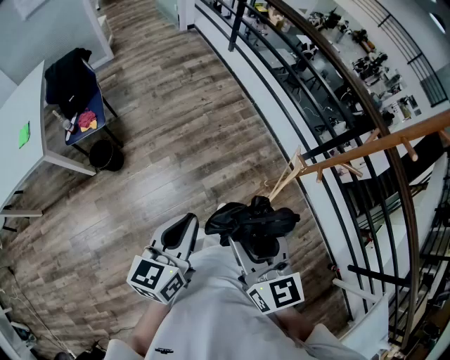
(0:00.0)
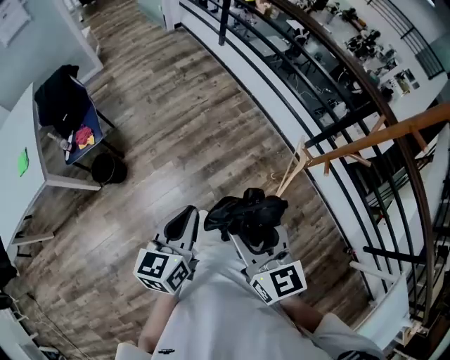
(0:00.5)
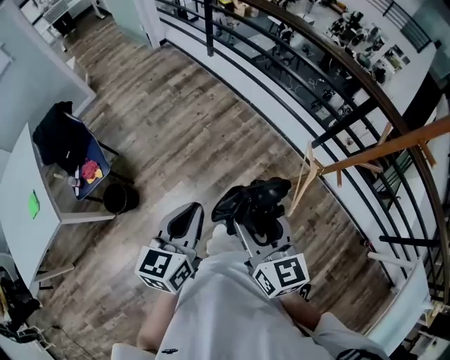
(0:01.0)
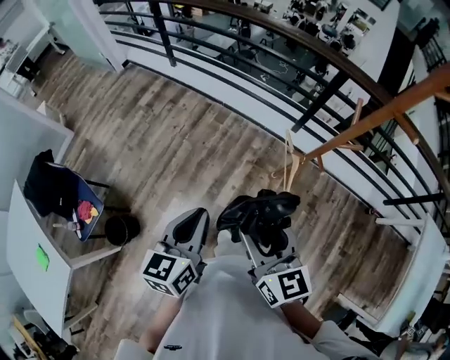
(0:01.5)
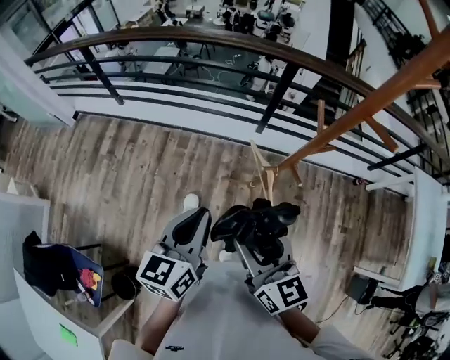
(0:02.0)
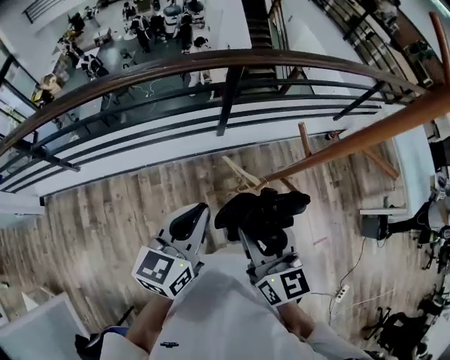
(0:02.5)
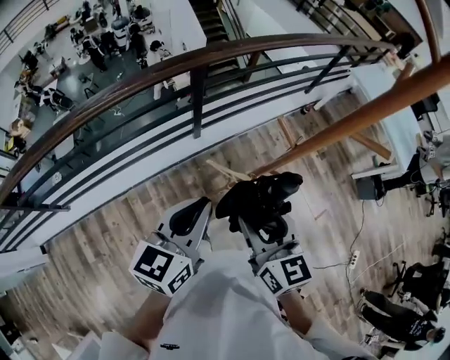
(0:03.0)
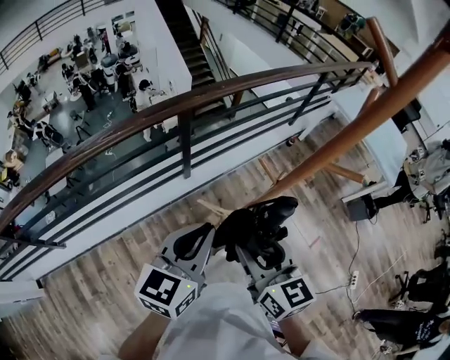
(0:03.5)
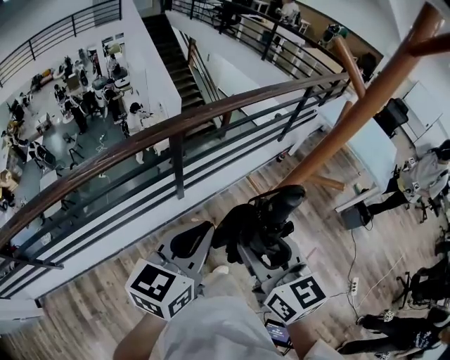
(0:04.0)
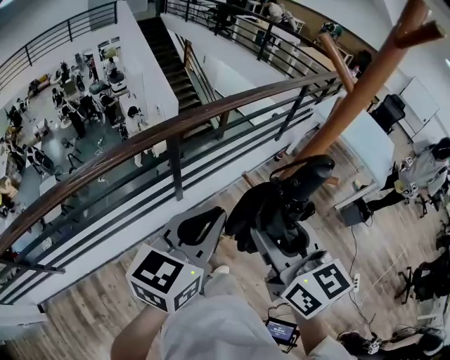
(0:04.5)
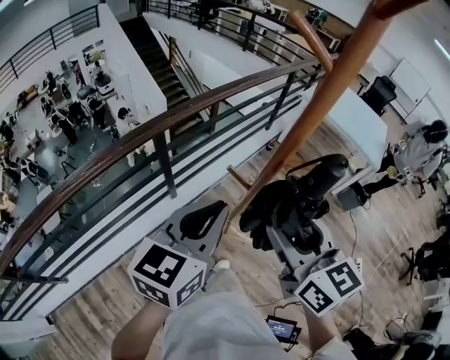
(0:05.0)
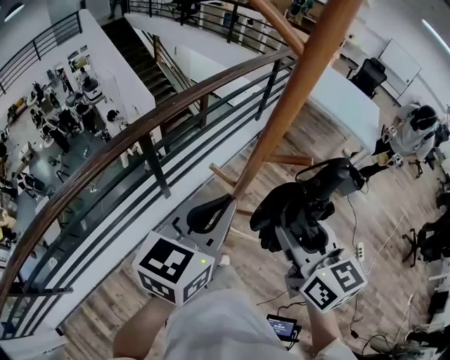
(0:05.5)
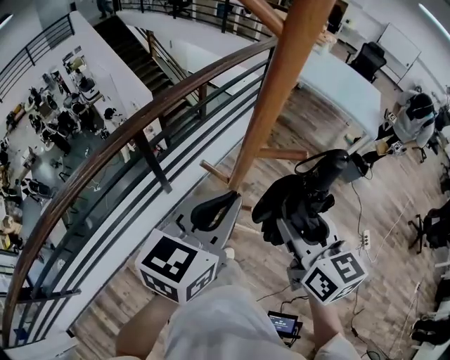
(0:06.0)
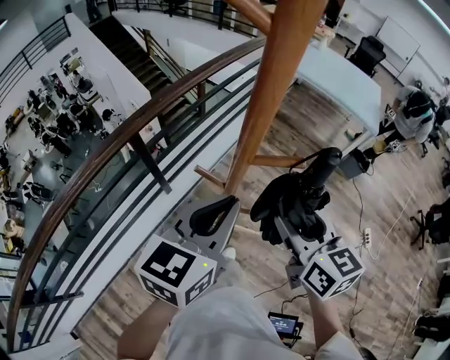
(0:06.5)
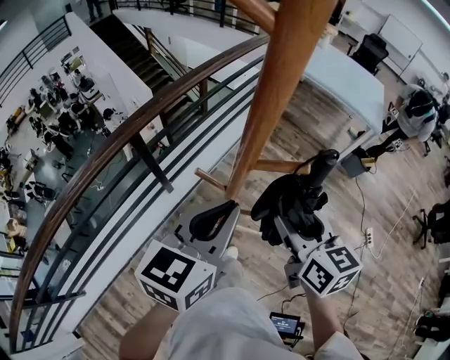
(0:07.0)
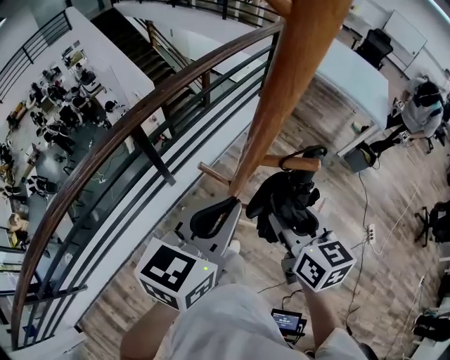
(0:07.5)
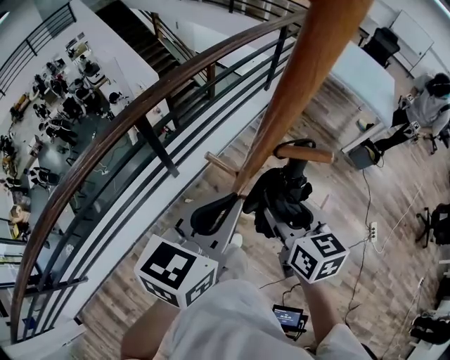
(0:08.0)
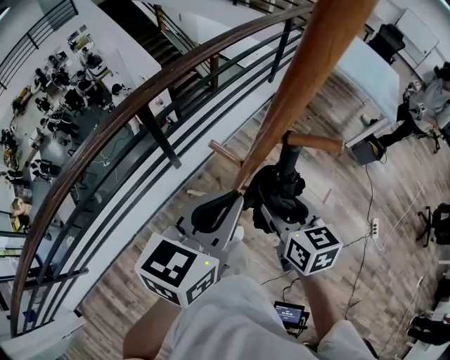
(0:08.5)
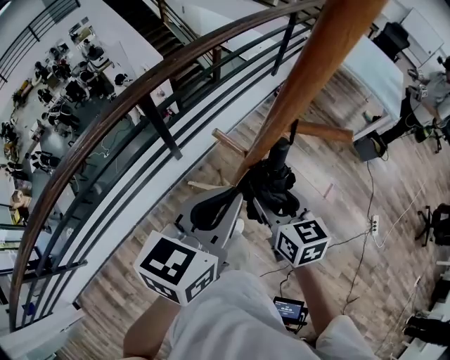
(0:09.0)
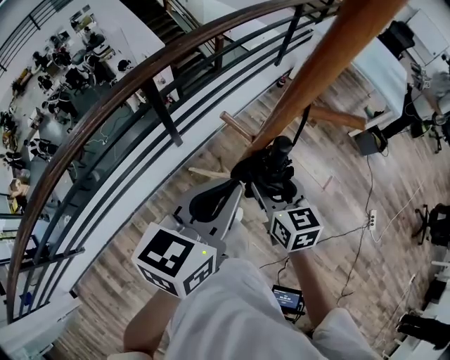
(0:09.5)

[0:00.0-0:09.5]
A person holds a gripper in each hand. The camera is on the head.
0:00.0 to 0:02.0: The left gripper changes place by roughly 35 cm, and turns by some 50 degrees. The right gripper moves about 25 cm, and turns by roughly 50 degrees.
0:02.0 to 0:04.0: The right gripper shifts by roughly 30 cm, and swivels approximately 50 degrees. Meanwhile the left gripper shifts by roughly 35 cm, and rotates some 60 degrees.
0:04.0 to 0:05.5: The left gripper goes approximately 15 cm to the right and forward, while the right gripper travels to the right by approximately 15 cm.
0:05.5 to 0:07.5: The right gripper is displaced downward and forward by about 15 cm. Meanwhile the left gripper travels downward by about 5 cm.
0:07.5 to 0:09.5: The left gripper ends up about 5 cm from where it was. The right gripper goes about 10 cm downward.

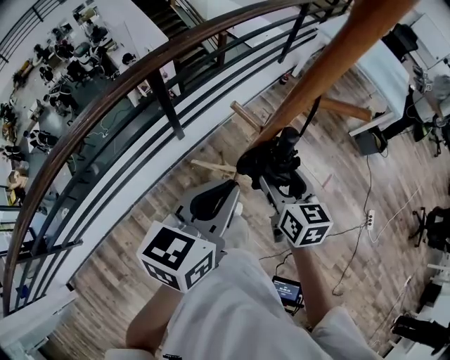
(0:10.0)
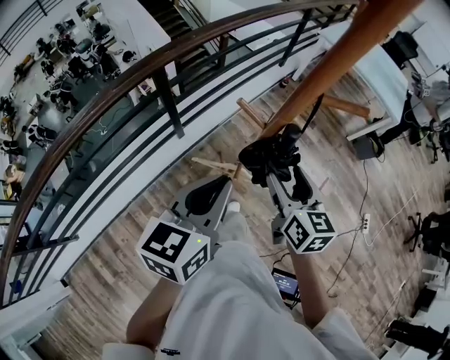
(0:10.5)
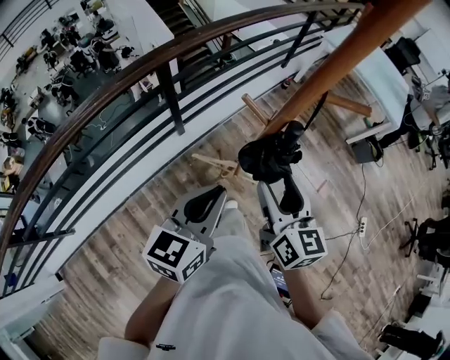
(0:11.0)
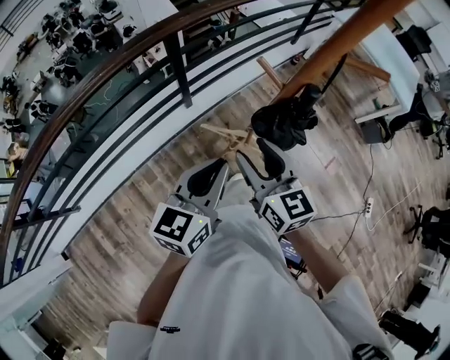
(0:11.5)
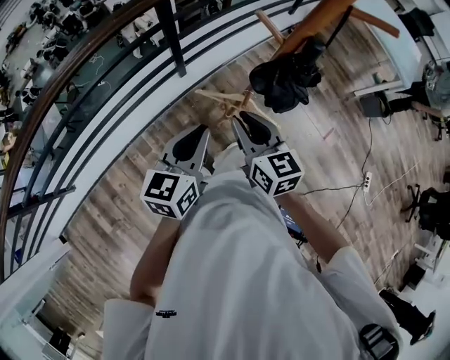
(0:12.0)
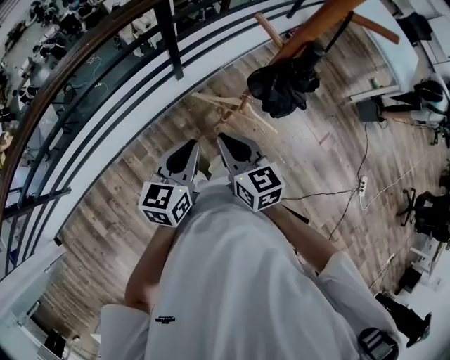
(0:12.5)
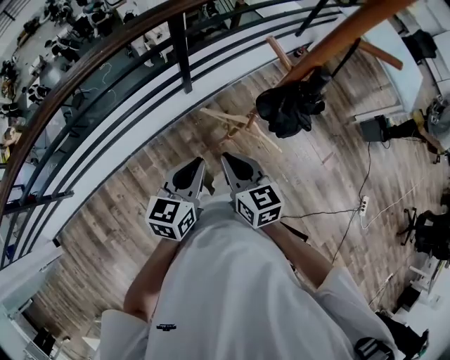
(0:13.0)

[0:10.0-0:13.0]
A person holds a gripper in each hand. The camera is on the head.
0:10.0 to 0:11.5: The left gripper goes approximately 10 cm backward, downward and to the left, while the right gripper is displaced to the left and backward by roughly 15 cm, and rotates roughly 20 degrees.
0:11.5 to 0:13.0: The right gripper shifts some 15 cm downward, backward and to the left, and closes. Meanwhile the left gripper travels downward and to the left by about 15 cm.

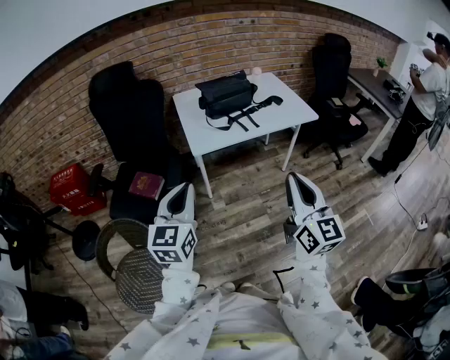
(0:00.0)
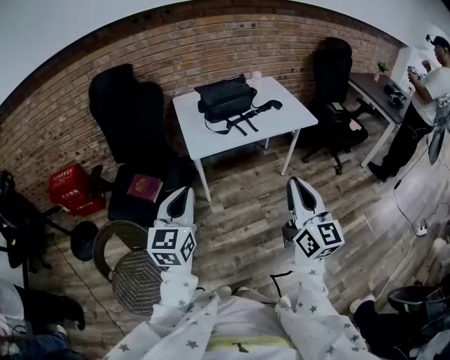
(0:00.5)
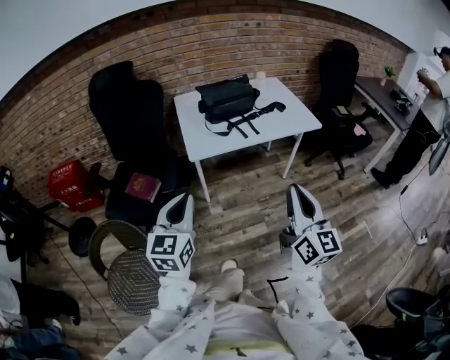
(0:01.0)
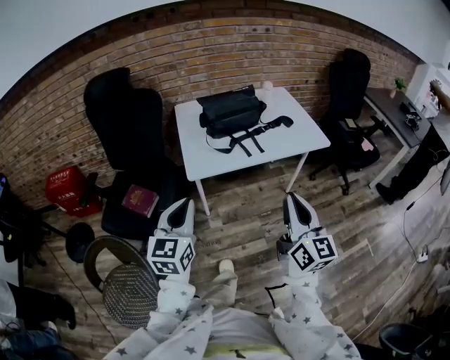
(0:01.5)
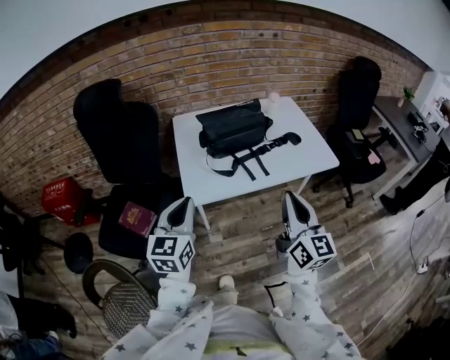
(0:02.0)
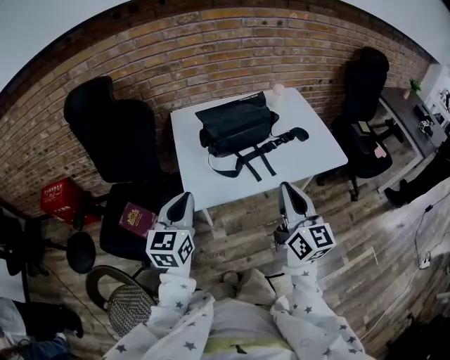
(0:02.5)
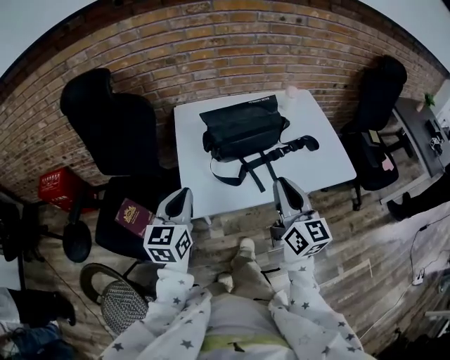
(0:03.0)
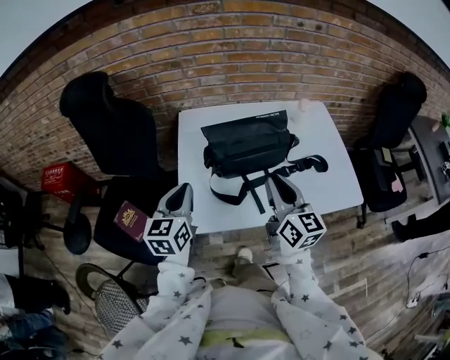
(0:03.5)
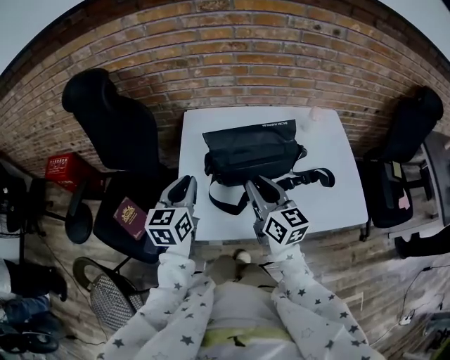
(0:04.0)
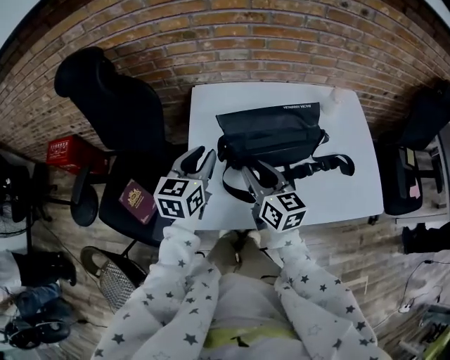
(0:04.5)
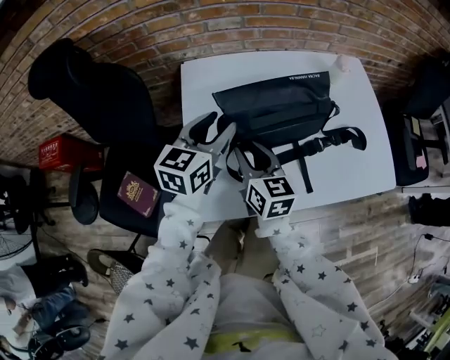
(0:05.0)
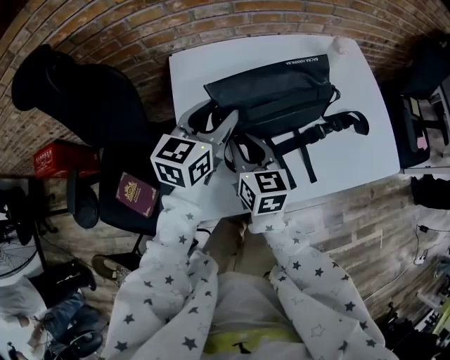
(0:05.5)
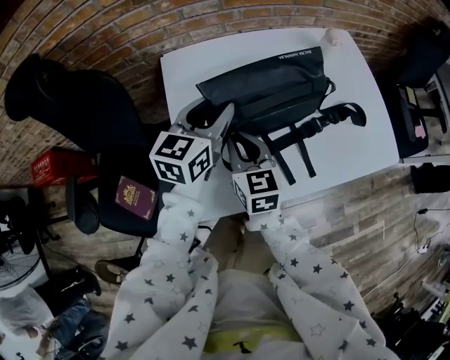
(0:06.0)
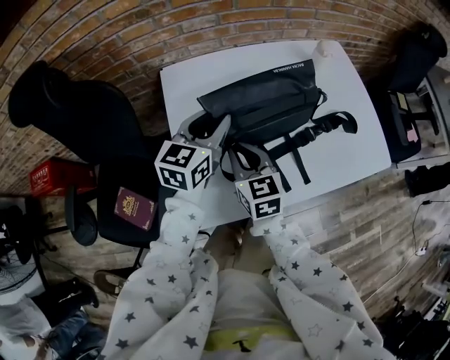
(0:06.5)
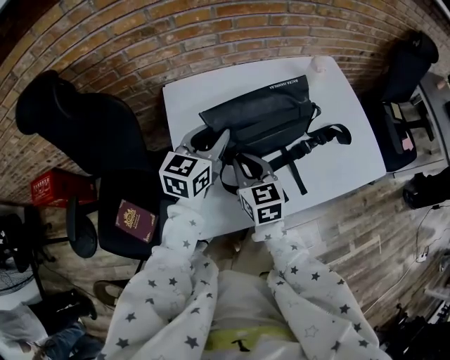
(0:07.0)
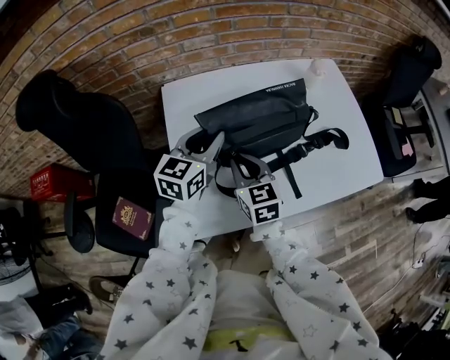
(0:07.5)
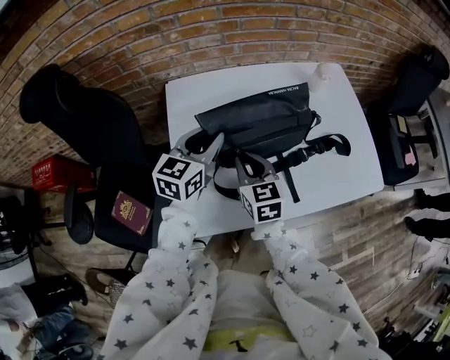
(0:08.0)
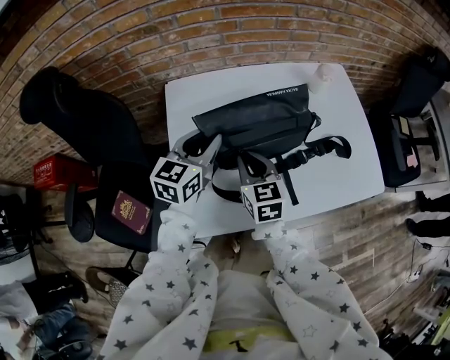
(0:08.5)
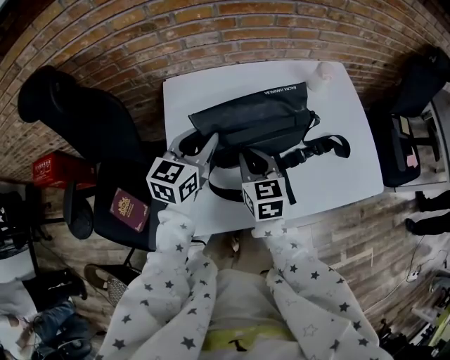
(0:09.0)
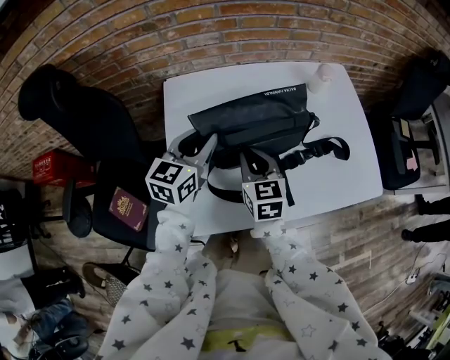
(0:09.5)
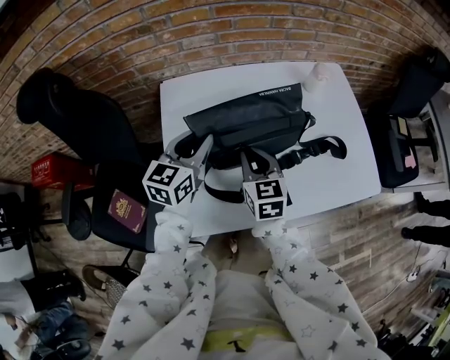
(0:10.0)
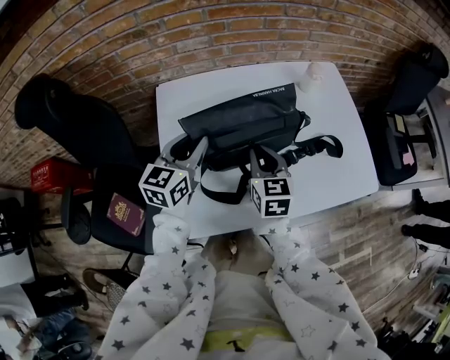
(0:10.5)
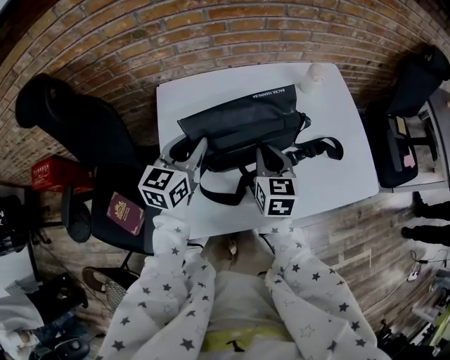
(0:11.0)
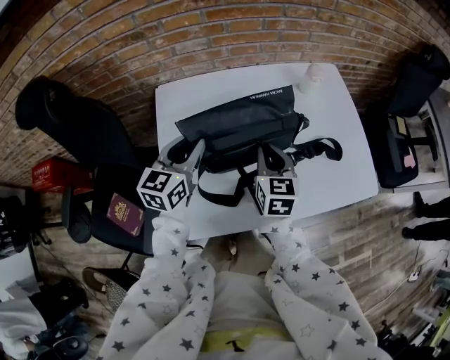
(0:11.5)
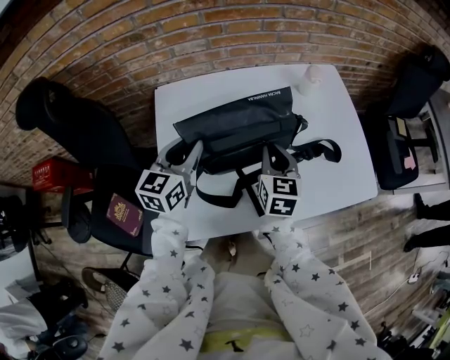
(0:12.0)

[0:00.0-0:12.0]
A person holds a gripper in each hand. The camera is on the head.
0:00.0 to 0:02.0: The grippers both shift forward by about 25 cm.
0:02.0 to 0:04.0: Both grippers travel together forward, roughly 30 cm. The right gripper turns by some 30 degrees.
0:04.0 to 0:06.0: The right gripper moves downward and to the left, roughly 15 cm, and changes its angle by about 20 degrees. The left gripper is displaced forward and to the right by roughly 15 cm, changes its angle by roughly 30 degrees, and opens its fingers.
0:06.0 to 0:08.0: The grippers make only small movements.
0:08.0 to 0:10.0: The grippers move only a little.
0:10.0 to 0:12.0: The right gripper goes about 10 cm to the right.

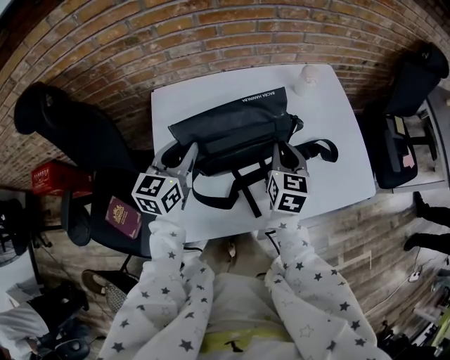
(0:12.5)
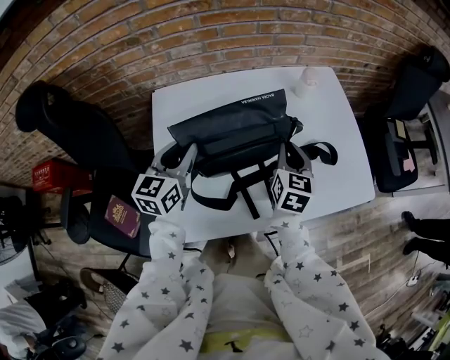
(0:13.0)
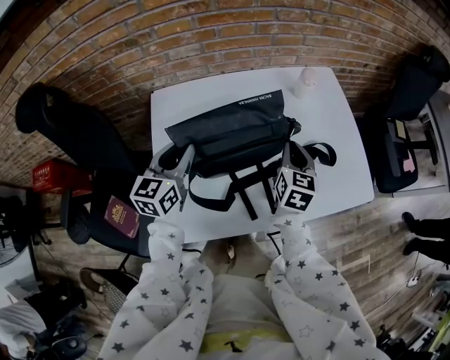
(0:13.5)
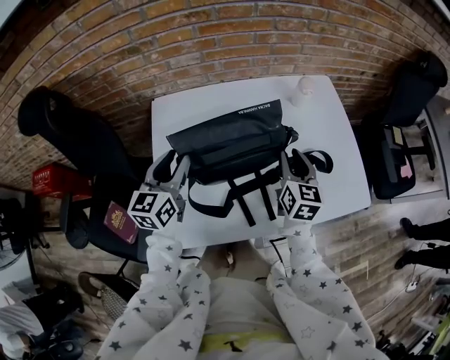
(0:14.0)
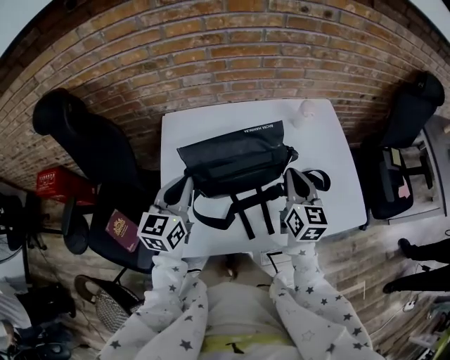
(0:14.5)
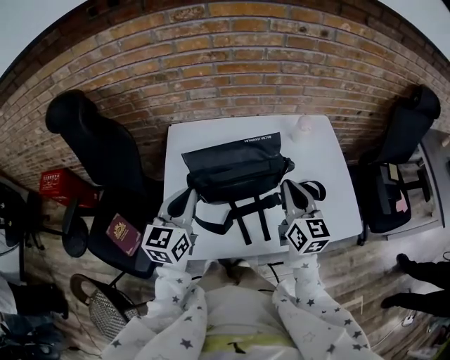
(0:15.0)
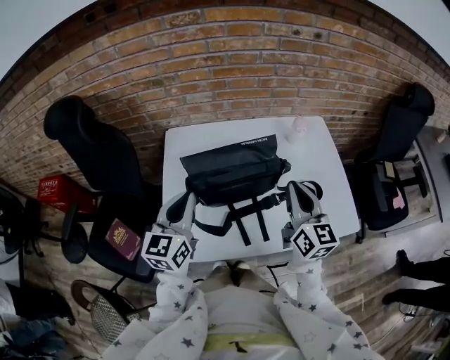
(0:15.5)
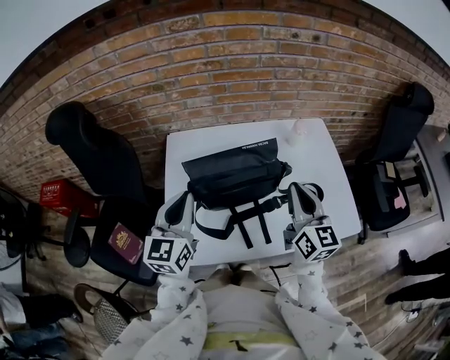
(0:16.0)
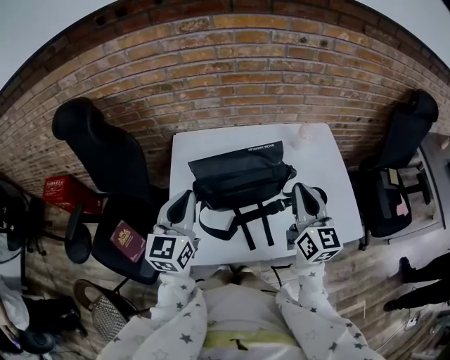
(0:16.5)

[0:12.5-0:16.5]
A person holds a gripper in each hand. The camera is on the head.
0:12.5 to 0:14.5: The left gripper shifts about 5 cm backward, and closes. Meanwhile the right gripper moves upward, about 5 cm.
0:14.5 to 0:16.5: The two grippers go about 10 cm upward.
